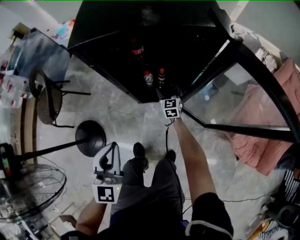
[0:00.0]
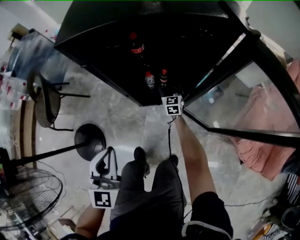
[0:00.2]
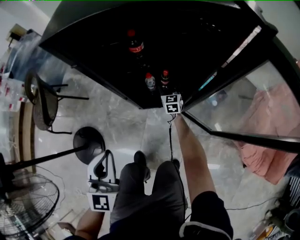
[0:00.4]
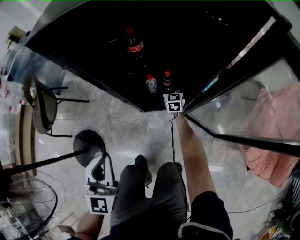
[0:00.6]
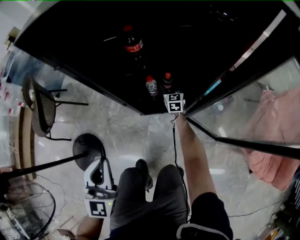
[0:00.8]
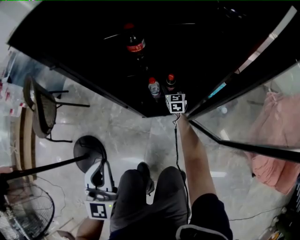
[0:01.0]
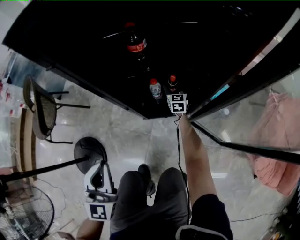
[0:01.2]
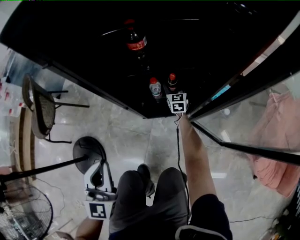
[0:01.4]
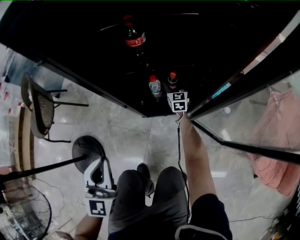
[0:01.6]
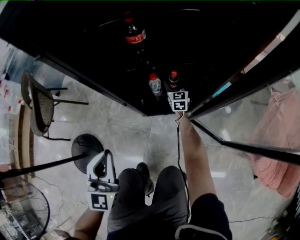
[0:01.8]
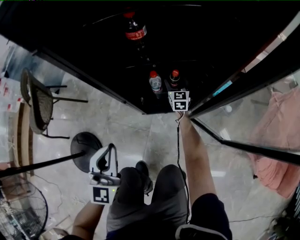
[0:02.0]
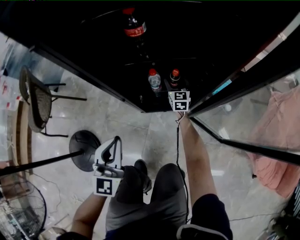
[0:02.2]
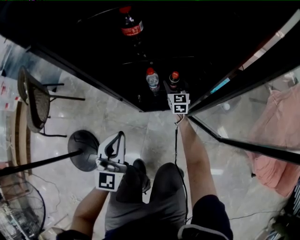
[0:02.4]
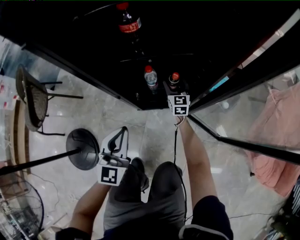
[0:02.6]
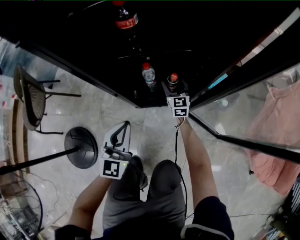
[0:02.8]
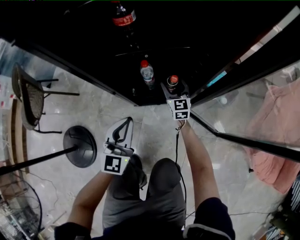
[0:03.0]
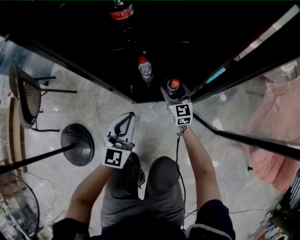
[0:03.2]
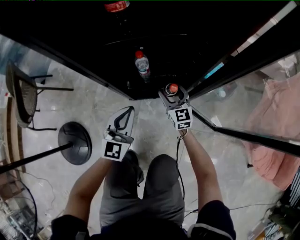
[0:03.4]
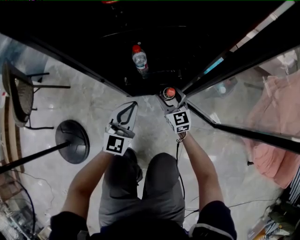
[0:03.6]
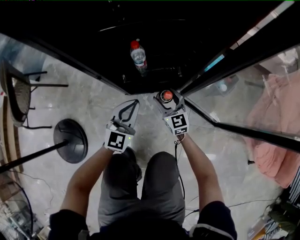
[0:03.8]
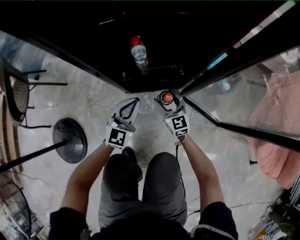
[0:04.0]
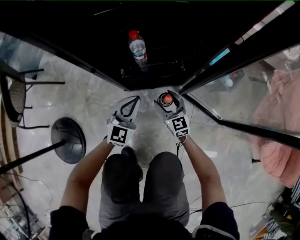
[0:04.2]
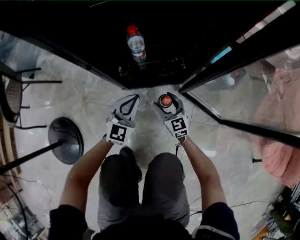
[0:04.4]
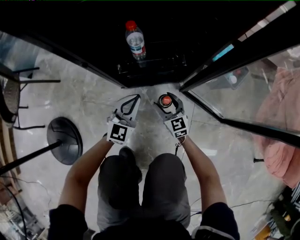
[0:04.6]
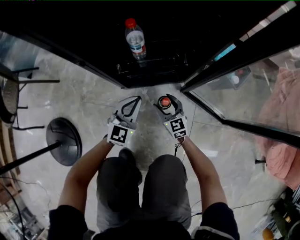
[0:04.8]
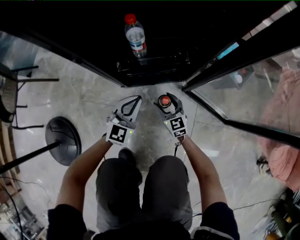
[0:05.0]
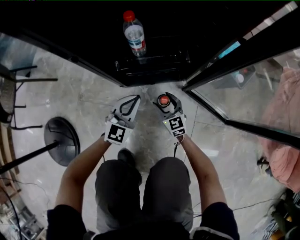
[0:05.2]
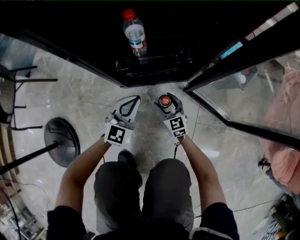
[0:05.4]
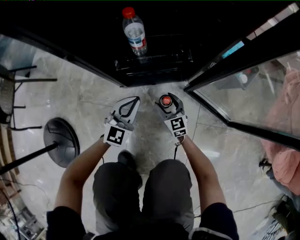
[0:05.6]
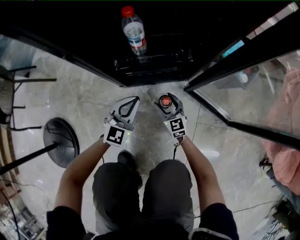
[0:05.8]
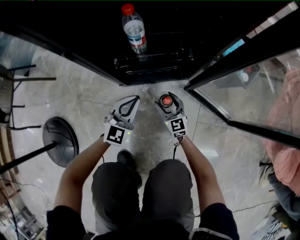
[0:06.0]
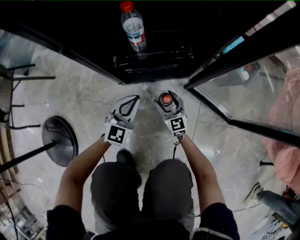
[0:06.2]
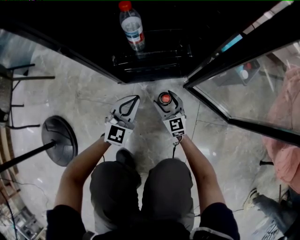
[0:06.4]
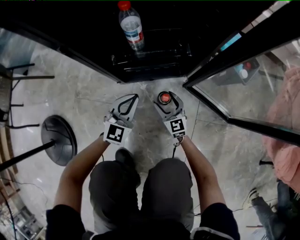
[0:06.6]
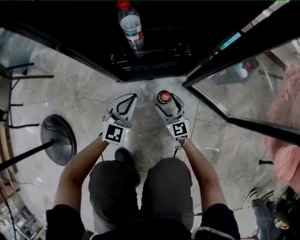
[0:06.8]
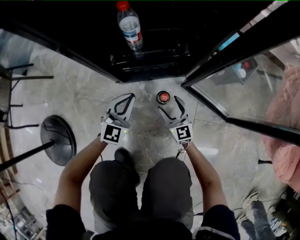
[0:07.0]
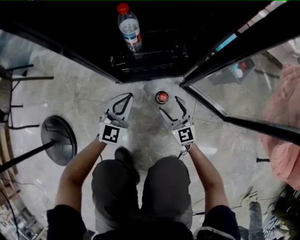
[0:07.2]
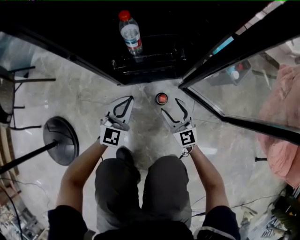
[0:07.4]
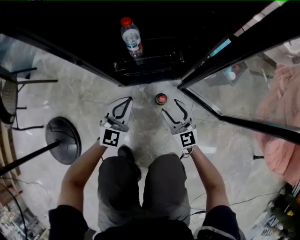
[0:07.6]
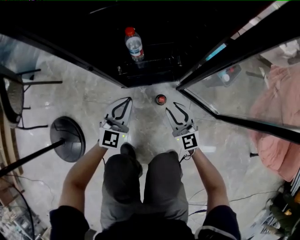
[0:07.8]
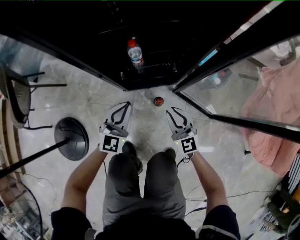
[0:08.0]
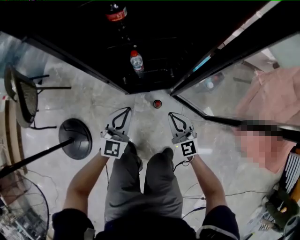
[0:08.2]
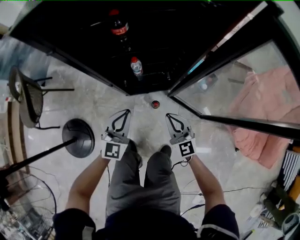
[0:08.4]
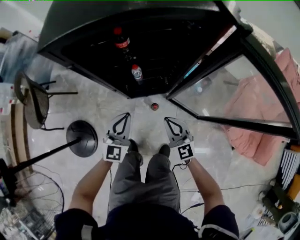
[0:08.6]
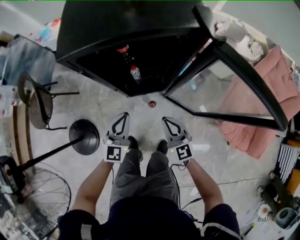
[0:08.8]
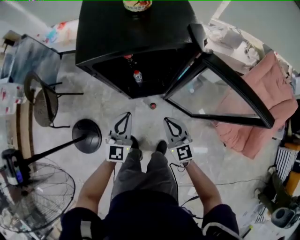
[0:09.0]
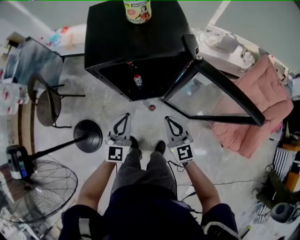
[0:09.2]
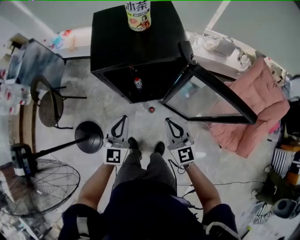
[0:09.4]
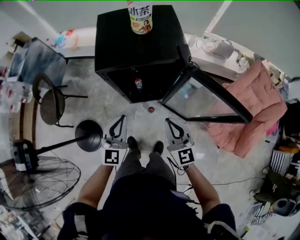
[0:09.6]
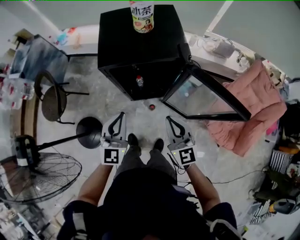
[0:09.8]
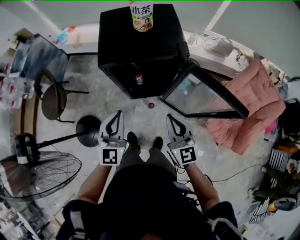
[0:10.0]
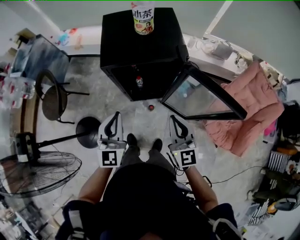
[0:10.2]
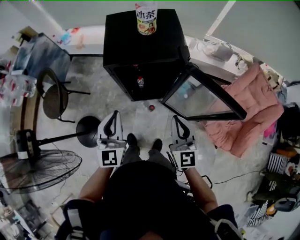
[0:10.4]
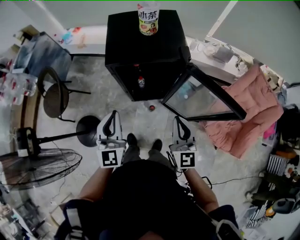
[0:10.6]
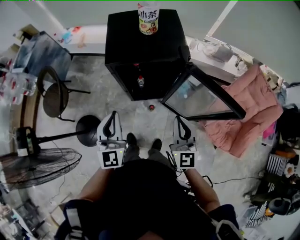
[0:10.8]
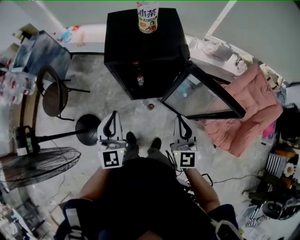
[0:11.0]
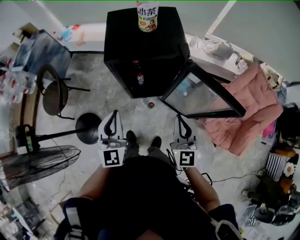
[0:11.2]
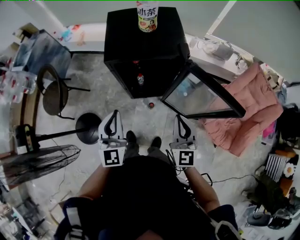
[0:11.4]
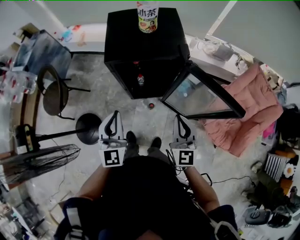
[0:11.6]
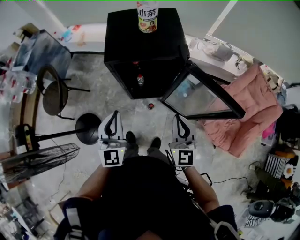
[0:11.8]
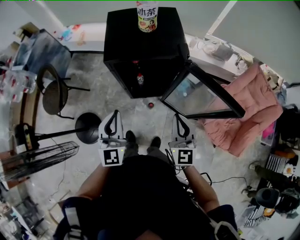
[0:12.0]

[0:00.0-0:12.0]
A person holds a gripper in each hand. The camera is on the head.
0:00.0 to 0:01.6: The left gripper shifts approximately 25 cm downward; the right gripper moves downward and forward, about 30 cm.
0:01.6 to 0:03.0: The right gripper is displaced backward by roughly 10 cm, while the left gripper is displaced downward, to the right and forward by about 20 cm.
0:03.0 to 0:04.4: The right gripper travels downward and backward by approximately 25 cm; the left gripper shifts roughly 25 cm downward.
0:04.4 to 0:06.0: Both grippers move downward, roughly 10 cm.
0:06.0 to 0:07.6: The right gripper moves upward, about 15 cm; the left gripper moves upward, about 10 cm.
0:07.6 to 0:09.0: The two grippers go some 50 cm upward. The right gripper closes.
0:09.0 to 0:10.4: Both grippers move upward, some 25 cm.
0:10.4 to 0:12.0: The grippers make only small movements.

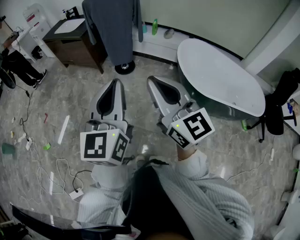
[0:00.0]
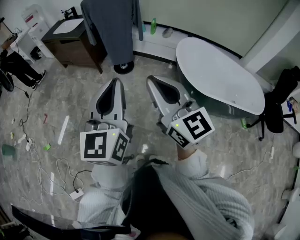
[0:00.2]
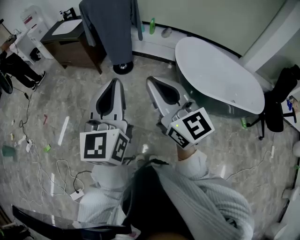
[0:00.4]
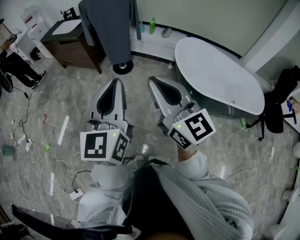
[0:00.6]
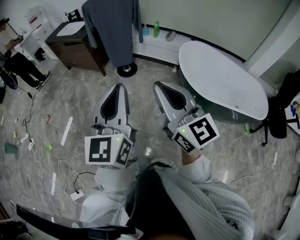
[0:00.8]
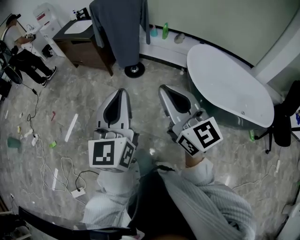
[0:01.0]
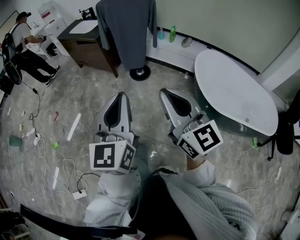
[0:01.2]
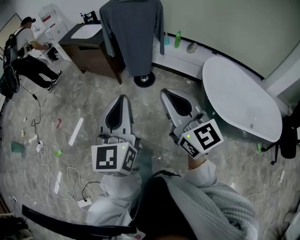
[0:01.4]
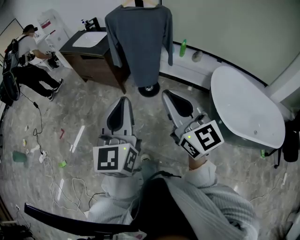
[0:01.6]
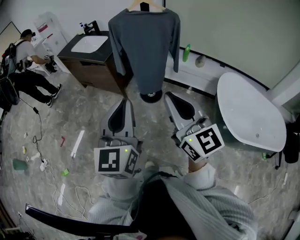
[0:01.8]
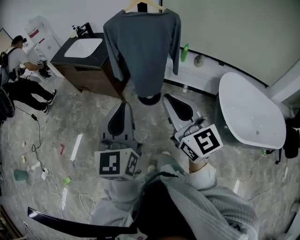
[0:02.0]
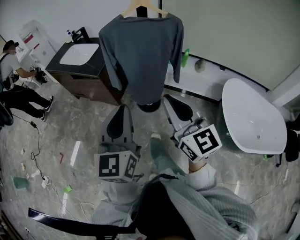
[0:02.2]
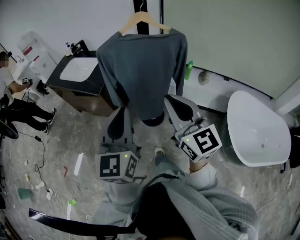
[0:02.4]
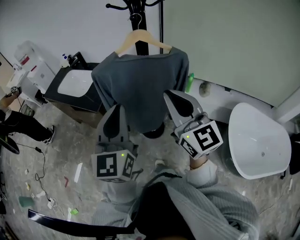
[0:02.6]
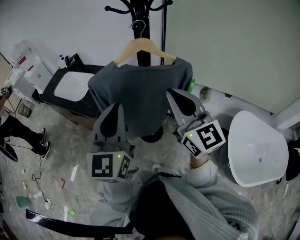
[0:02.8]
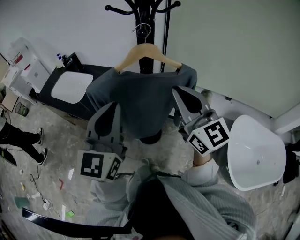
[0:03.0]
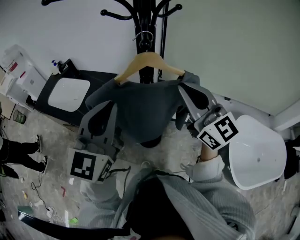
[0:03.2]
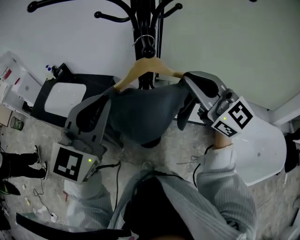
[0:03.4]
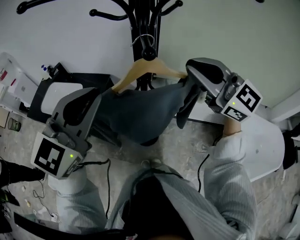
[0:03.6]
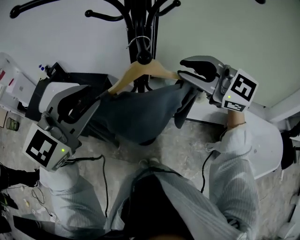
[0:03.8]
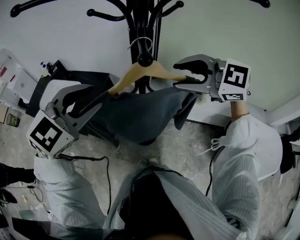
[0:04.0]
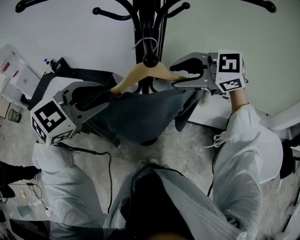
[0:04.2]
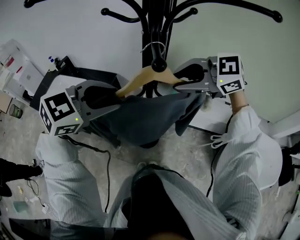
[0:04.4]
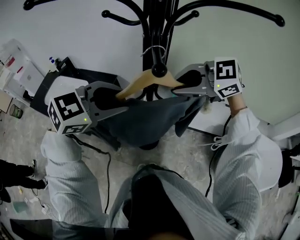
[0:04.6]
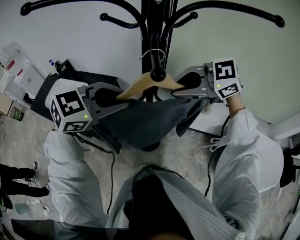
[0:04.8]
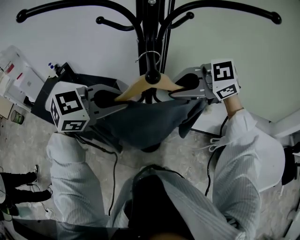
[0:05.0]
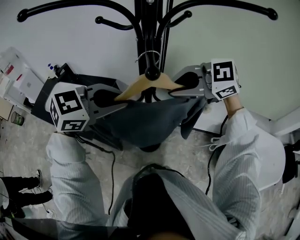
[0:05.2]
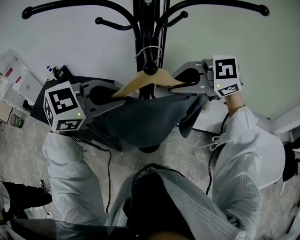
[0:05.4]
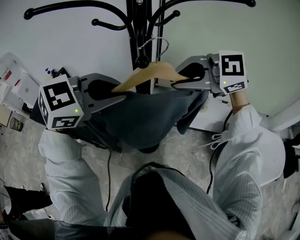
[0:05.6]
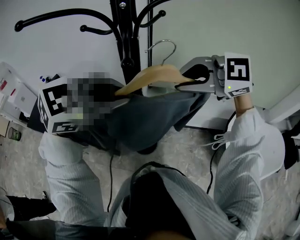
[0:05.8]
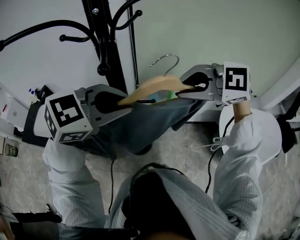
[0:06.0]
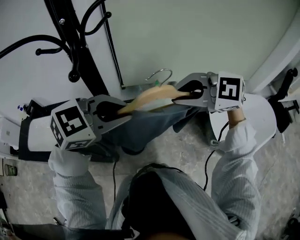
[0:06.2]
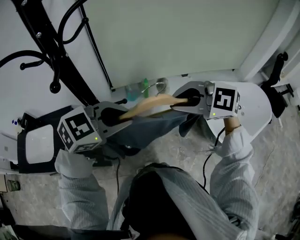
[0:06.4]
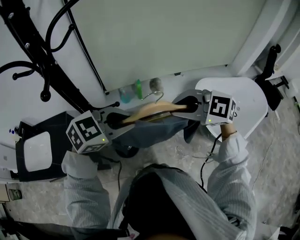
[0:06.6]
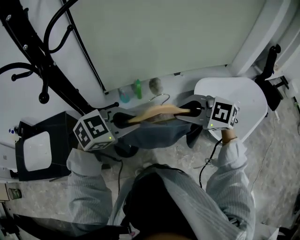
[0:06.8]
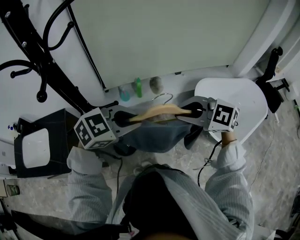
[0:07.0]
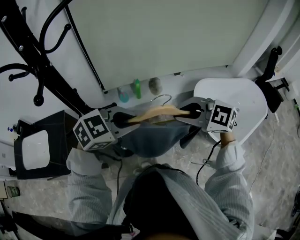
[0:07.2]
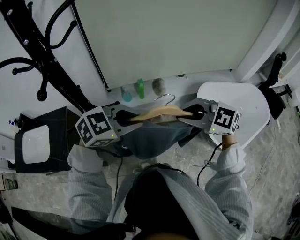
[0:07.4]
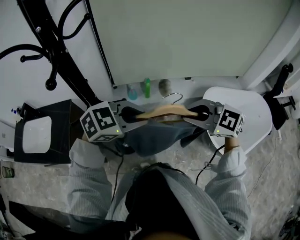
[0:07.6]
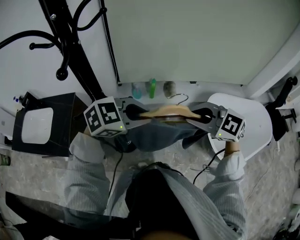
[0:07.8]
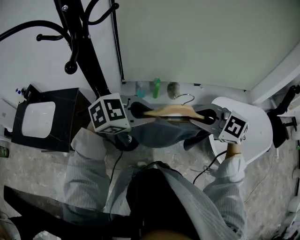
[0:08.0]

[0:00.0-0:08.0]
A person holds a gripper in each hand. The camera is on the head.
0:00.0 to 0:01.6: Both grippers move forward, about 25 cm.
0:01.6 to 0:03.2: The two grippers travel together, forward, roughly 70 cm. The left gripper swivels about 30 degrees.
0:03.2 to 0:04.8: The right gripper changes place by roughly 10 cm, points its fingers roughly 40 degrees further downward, and opens, then closes again; the left gripper moves about 15 cm, and angles its fingers downward, by about 30 degrees.
0:04.8 to 0:06.4: The right gripper reaches about 5 cm upward, then returns, and rotates roughly 40 degrees. The left gripper moves about 5 cm upward and comes back, and turns by some 30 degrees.
0:06.4 to 0:08.0: The two grippers go about 5 cm downward.

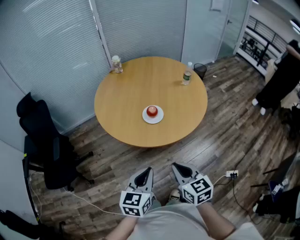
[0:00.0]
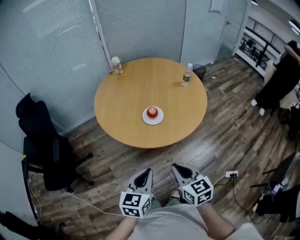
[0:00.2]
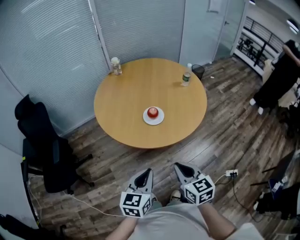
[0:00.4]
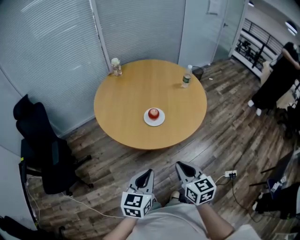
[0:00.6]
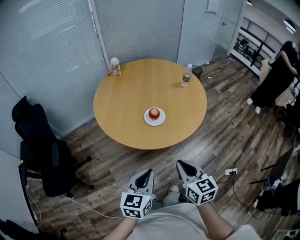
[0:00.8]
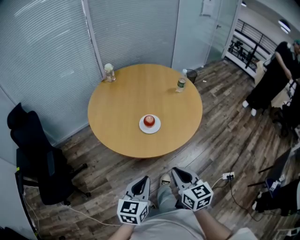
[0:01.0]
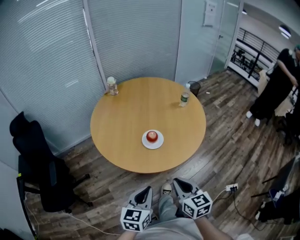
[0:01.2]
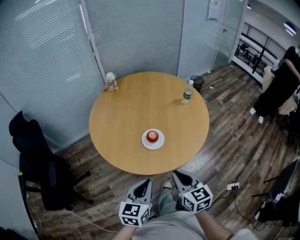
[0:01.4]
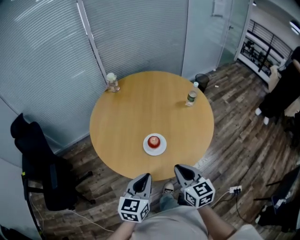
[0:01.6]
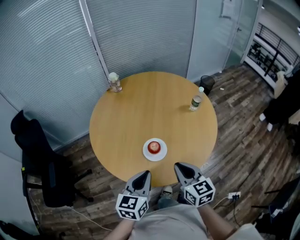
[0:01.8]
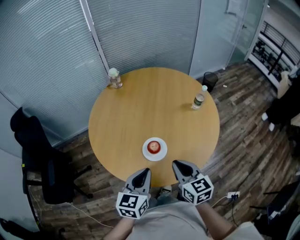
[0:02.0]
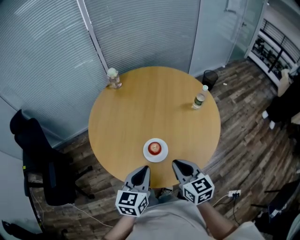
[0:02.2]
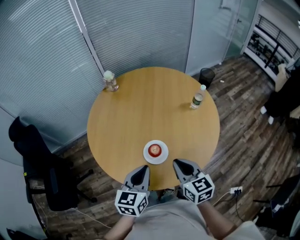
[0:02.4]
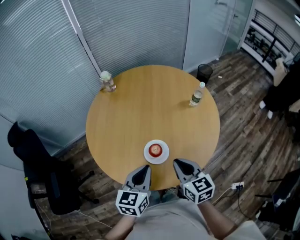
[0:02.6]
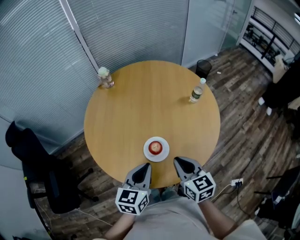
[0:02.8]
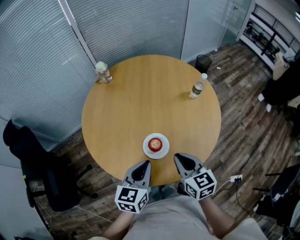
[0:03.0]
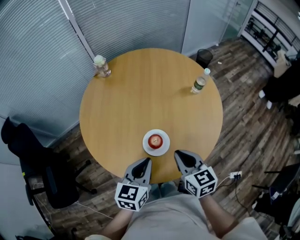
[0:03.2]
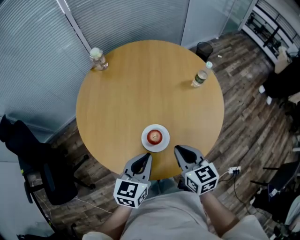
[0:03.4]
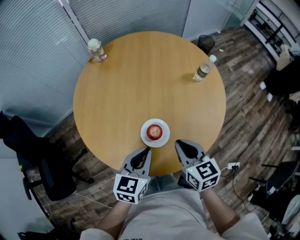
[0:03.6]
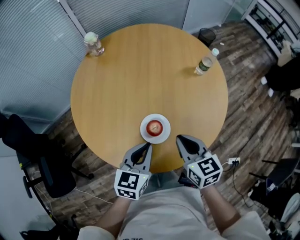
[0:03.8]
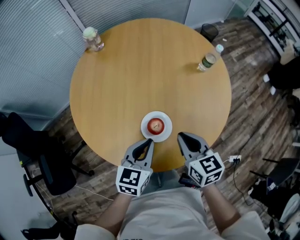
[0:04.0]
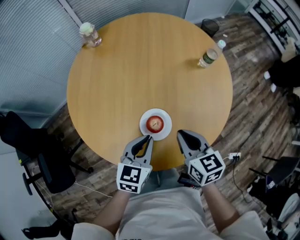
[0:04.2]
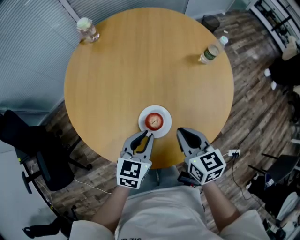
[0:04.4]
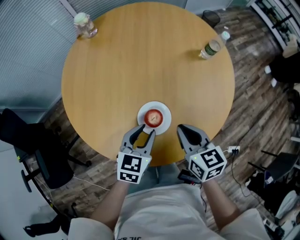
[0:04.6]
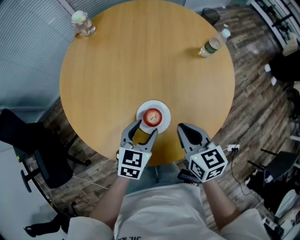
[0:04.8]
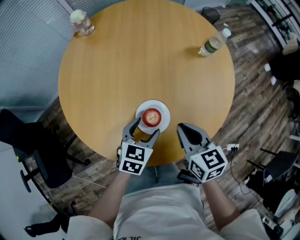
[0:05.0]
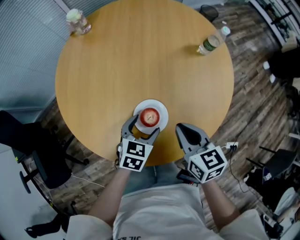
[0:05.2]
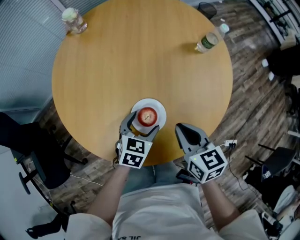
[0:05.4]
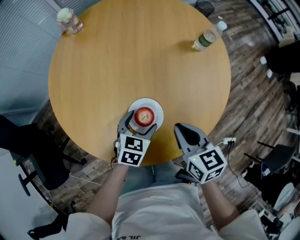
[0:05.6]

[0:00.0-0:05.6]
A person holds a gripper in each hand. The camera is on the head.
0:00.0 to 0:01.4: The two grippers go roughly 10 cm forward.
0:01.4 to 0:02.8: The two grippers go some 20 cm forward.
0:02.8 to 0:04.2: The two grippers go roughly 10 cm downward and forward.
0:04.2 to 0:05.6: The left gripper is displaced downward by about 10 cm, and opens.
